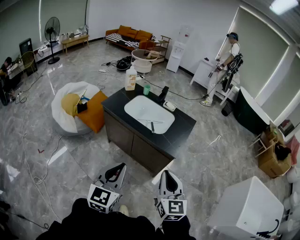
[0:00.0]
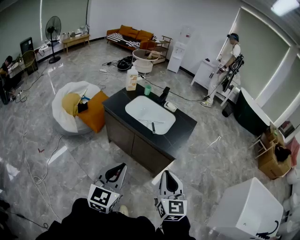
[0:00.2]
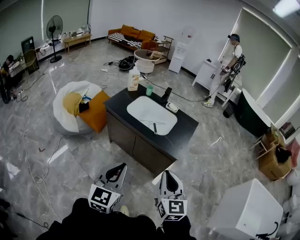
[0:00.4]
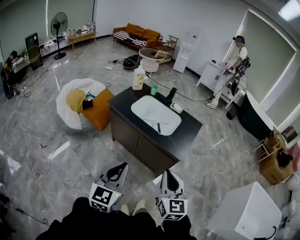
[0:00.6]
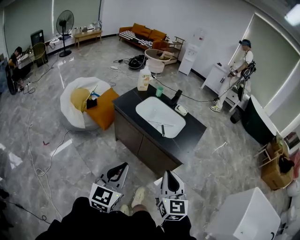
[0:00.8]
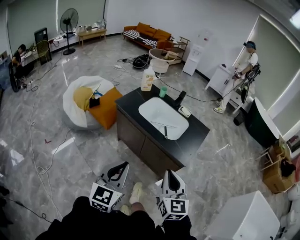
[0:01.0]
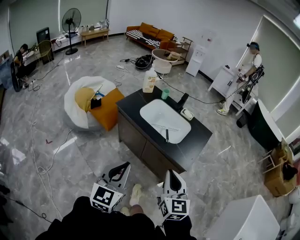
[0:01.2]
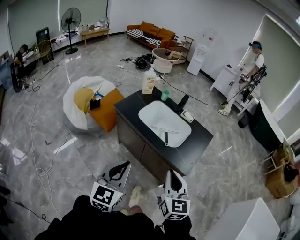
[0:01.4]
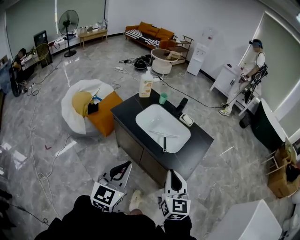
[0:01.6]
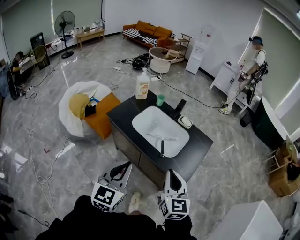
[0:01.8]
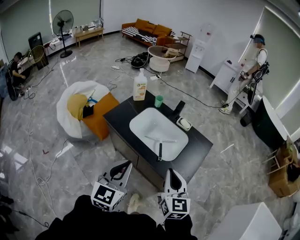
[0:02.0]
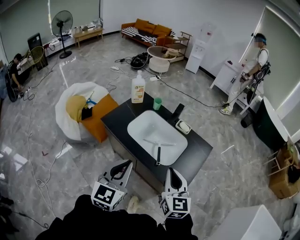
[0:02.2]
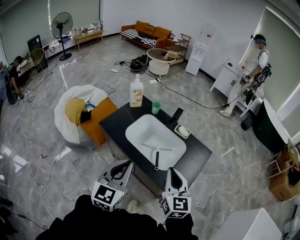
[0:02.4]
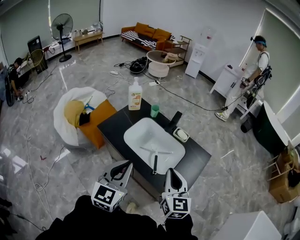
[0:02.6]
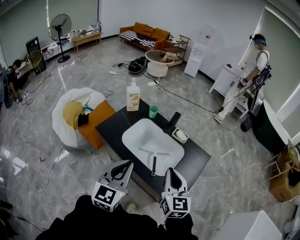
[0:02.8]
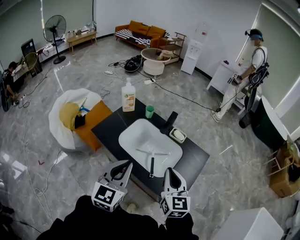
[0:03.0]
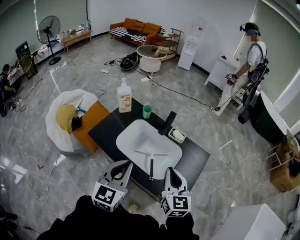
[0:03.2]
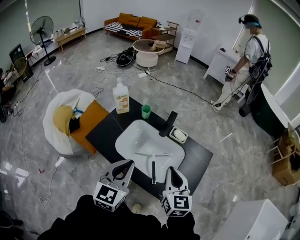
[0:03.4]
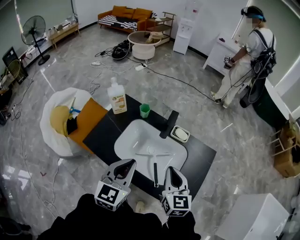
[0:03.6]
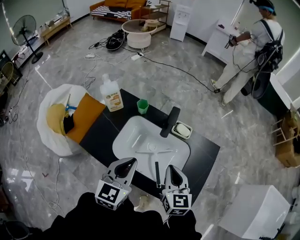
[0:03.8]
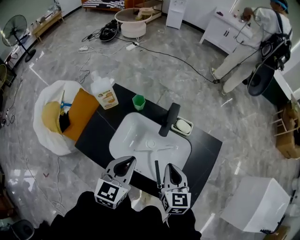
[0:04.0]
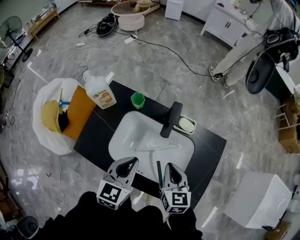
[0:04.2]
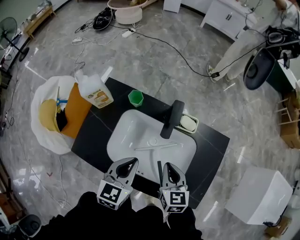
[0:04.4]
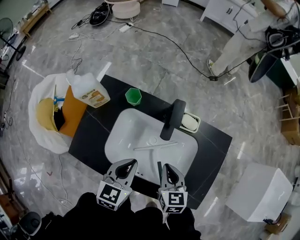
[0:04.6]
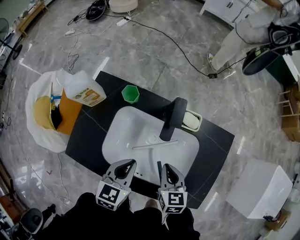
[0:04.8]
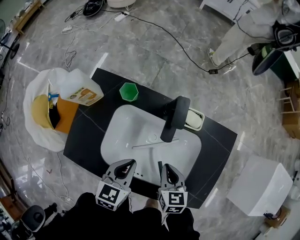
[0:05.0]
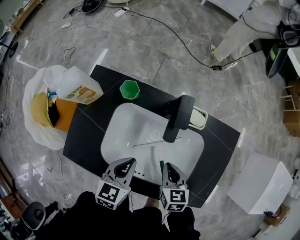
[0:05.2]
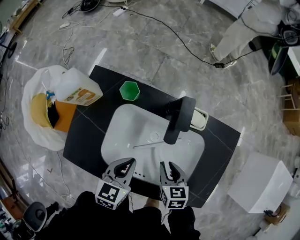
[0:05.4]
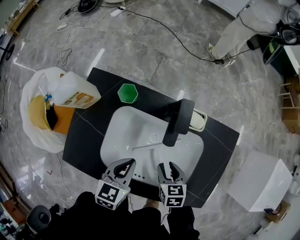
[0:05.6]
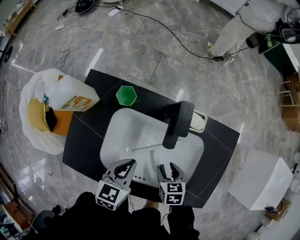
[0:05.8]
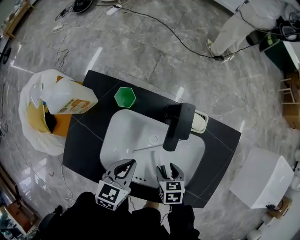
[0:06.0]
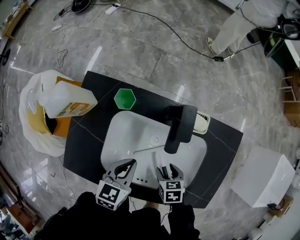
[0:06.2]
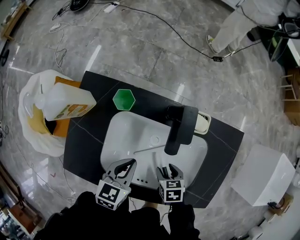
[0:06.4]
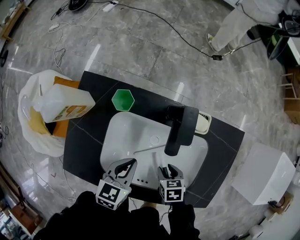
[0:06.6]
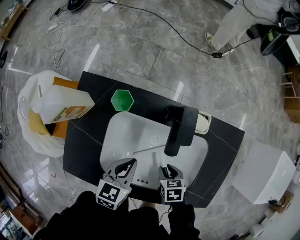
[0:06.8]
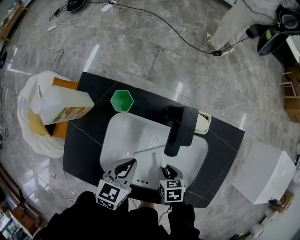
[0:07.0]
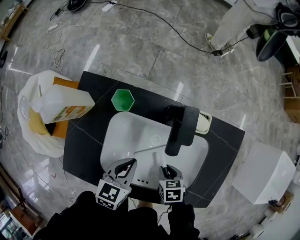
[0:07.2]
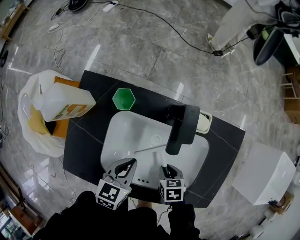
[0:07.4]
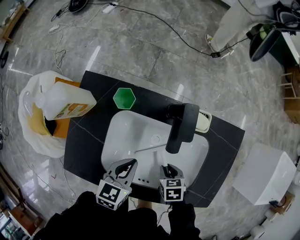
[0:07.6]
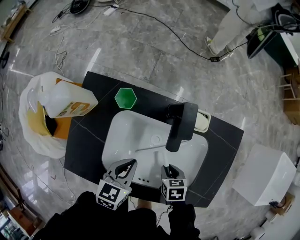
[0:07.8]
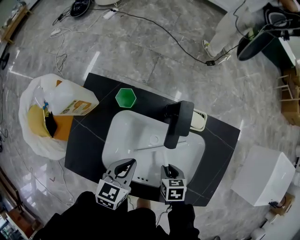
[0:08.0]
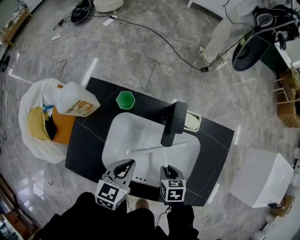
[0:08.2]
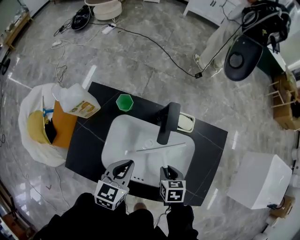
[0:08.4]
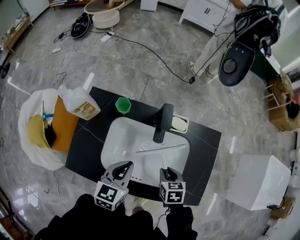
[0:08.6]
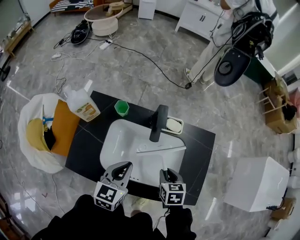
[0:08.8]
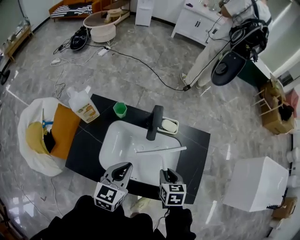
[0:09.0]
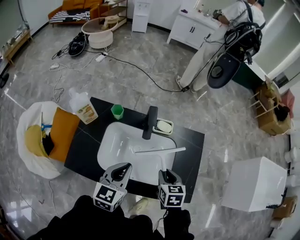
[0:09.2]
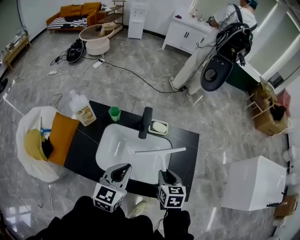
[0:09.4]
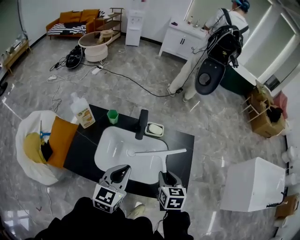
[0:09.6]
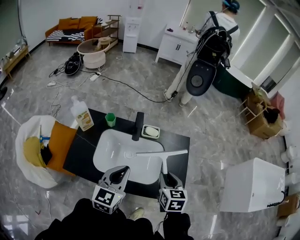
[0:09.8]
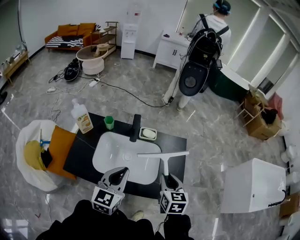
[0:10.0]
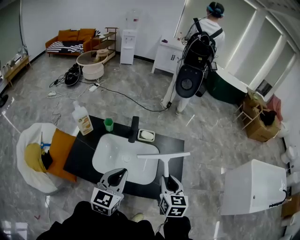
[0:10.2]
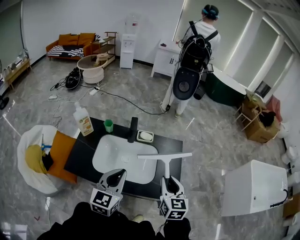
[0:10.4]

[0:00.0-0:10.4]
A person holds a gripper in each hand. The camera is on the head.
0:00.0 to 0:01.4: The two grippers go approximately 15 cm forward.
0:01.4 to 0:03.0: Both grippers travel together forward, about 30 cm.
0:03.0 to 0:04.4: Both grippers move forward and downward, approximately 30 cm. The left gripper swivels about 30 degrees. Meanwhile the right gripper changes its angle by roughly 30 degrees.
0:04.4 to 0:06.0: Both grippers move downward, about 15 cm. The right gripper tips its fingers downward by some 30 degrees, and opens its fingers.
0:06.0 to 0:07.4: The right gripper closes its fingers.
0:07.4 to 0:09.0: The two grippers go roughly 20 cm upward. The right gripper swivels some 20 degrees.
0:09.0 to 0:10.4: The grippers both shift upward, backward and to the right by roughly 25 cm. The right gripper tips its fingers upward by approximately 30 degrees.

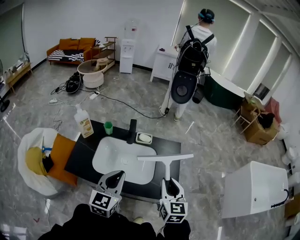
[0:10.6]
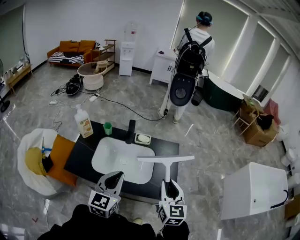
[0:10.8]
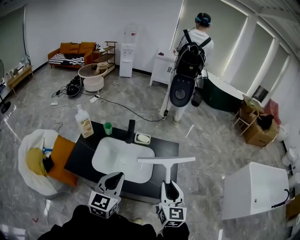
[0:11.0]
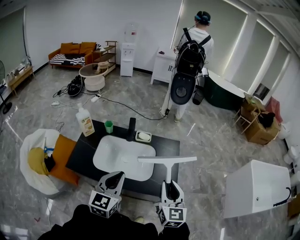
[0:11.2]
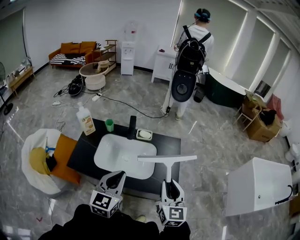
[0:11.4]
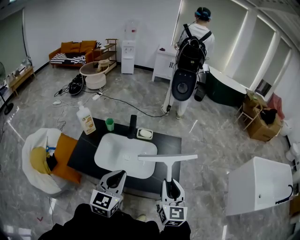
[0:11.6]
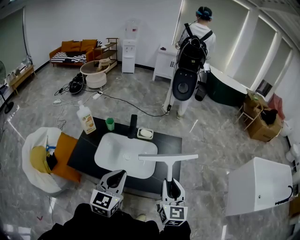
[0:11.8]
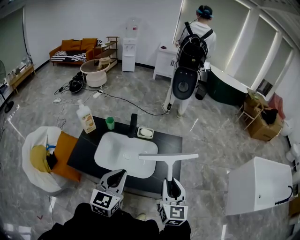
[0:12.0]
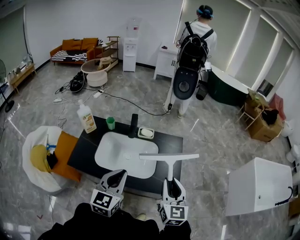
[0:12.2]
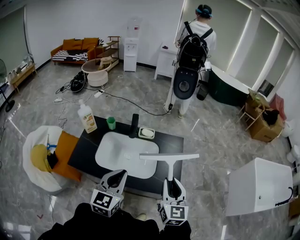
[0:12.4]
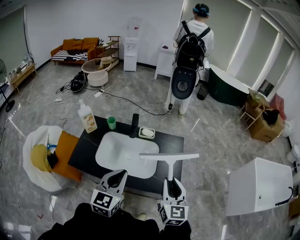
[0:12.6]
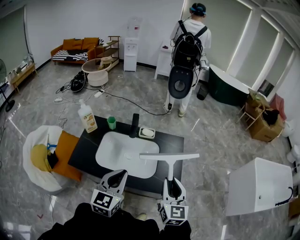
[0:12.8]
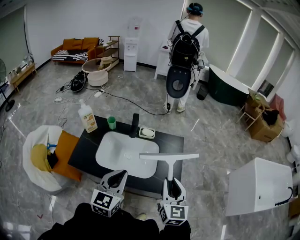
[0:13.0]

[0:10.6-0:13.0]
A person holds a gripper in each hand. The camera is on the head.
0:10.6 to 0:11.8: The right gripper moves some 5 cm.
0:11.8 to 0:13.0: The grippers make only small movements.

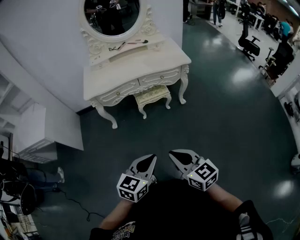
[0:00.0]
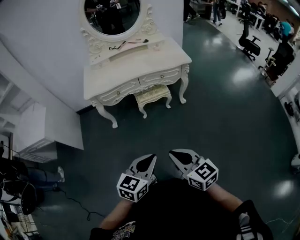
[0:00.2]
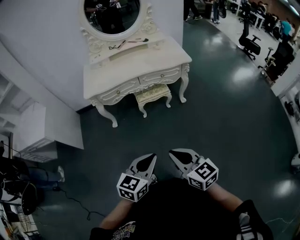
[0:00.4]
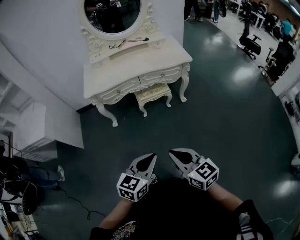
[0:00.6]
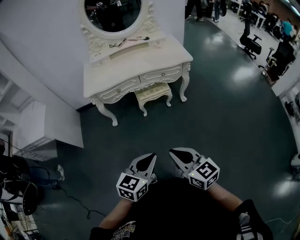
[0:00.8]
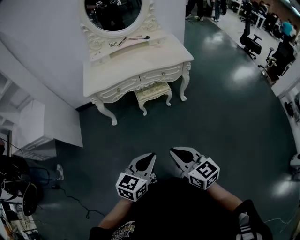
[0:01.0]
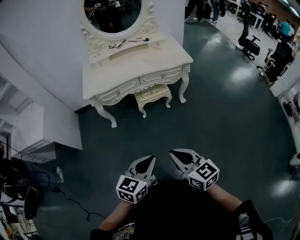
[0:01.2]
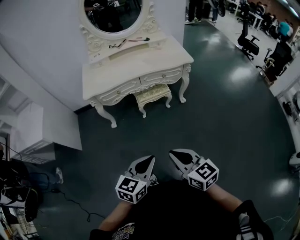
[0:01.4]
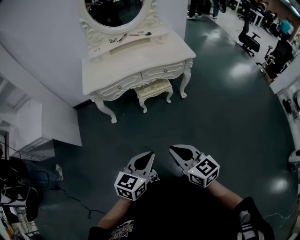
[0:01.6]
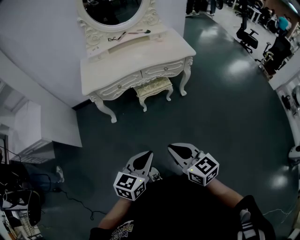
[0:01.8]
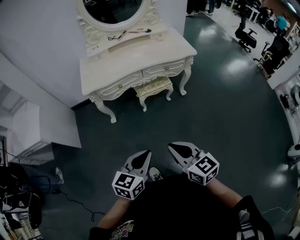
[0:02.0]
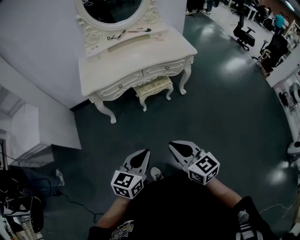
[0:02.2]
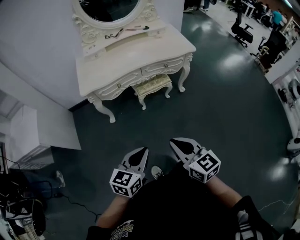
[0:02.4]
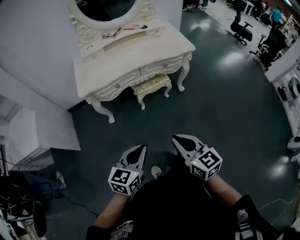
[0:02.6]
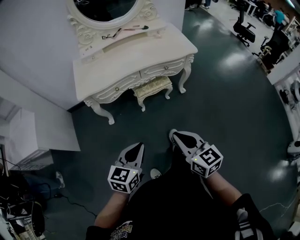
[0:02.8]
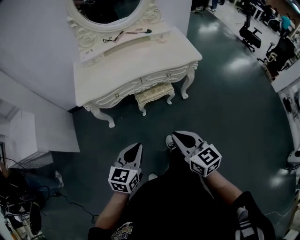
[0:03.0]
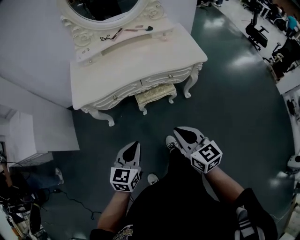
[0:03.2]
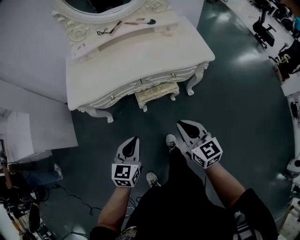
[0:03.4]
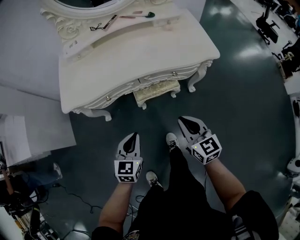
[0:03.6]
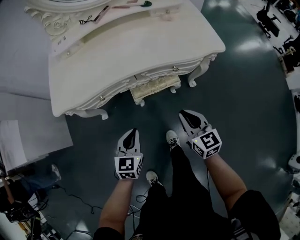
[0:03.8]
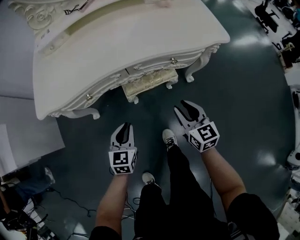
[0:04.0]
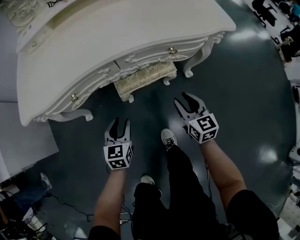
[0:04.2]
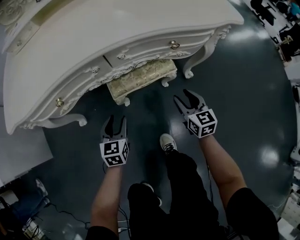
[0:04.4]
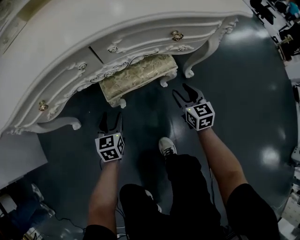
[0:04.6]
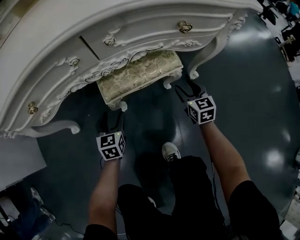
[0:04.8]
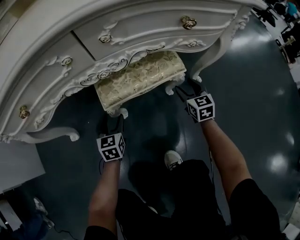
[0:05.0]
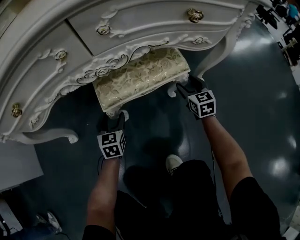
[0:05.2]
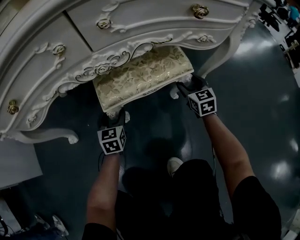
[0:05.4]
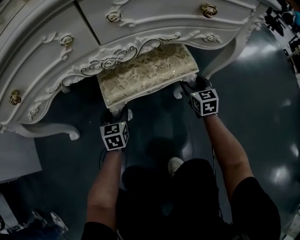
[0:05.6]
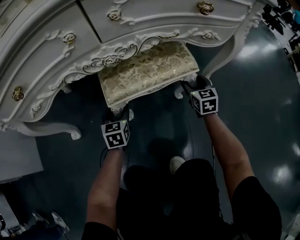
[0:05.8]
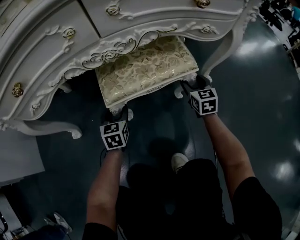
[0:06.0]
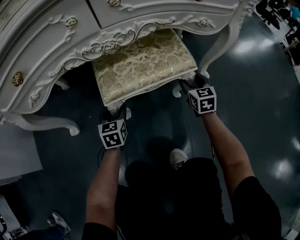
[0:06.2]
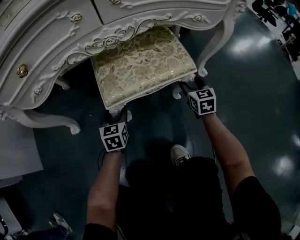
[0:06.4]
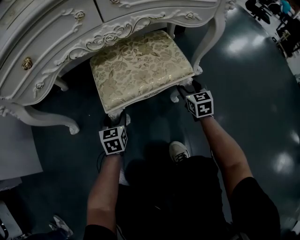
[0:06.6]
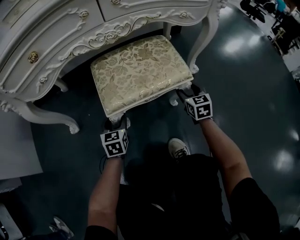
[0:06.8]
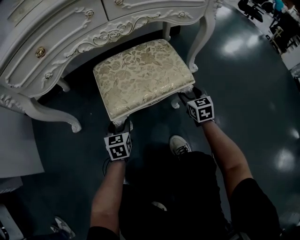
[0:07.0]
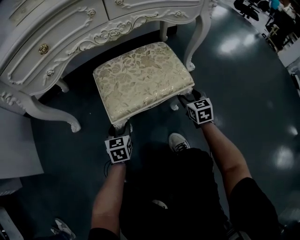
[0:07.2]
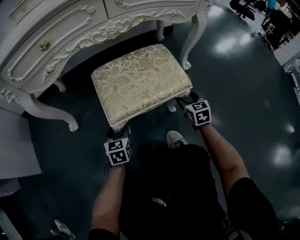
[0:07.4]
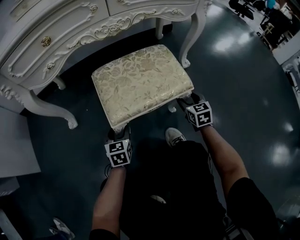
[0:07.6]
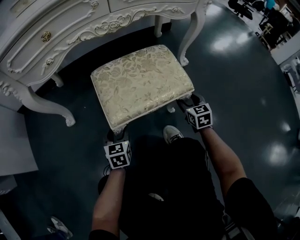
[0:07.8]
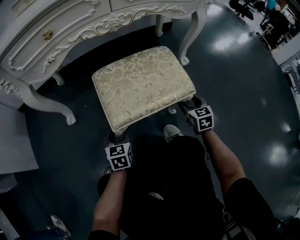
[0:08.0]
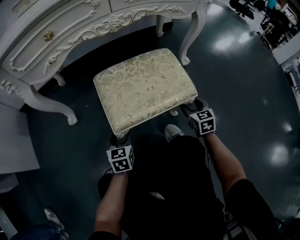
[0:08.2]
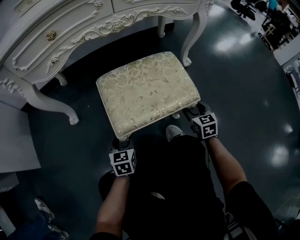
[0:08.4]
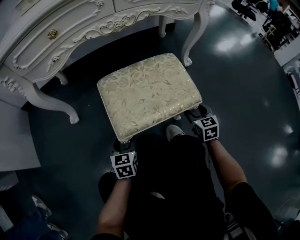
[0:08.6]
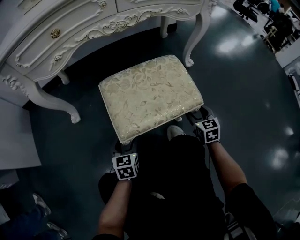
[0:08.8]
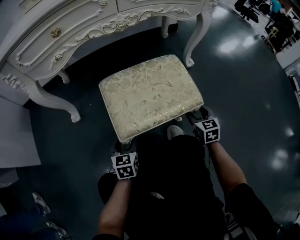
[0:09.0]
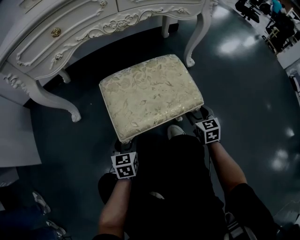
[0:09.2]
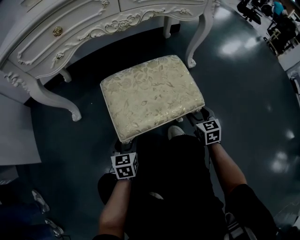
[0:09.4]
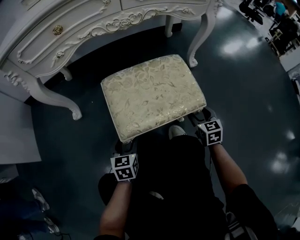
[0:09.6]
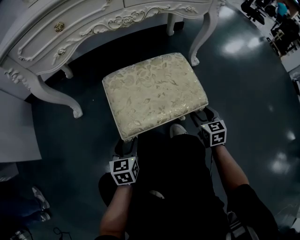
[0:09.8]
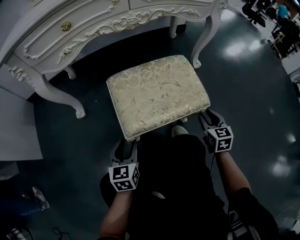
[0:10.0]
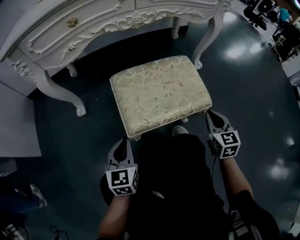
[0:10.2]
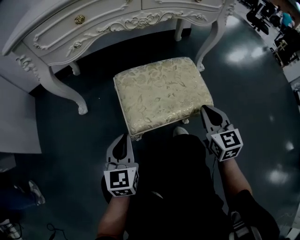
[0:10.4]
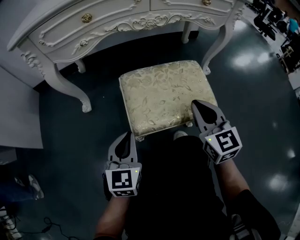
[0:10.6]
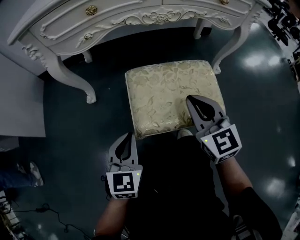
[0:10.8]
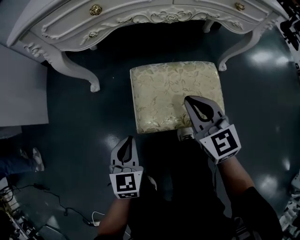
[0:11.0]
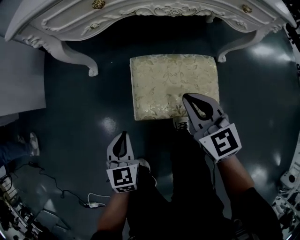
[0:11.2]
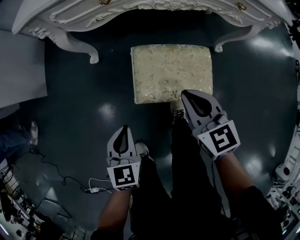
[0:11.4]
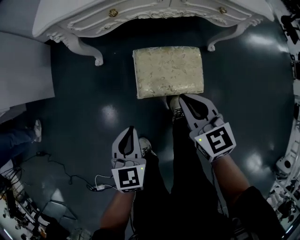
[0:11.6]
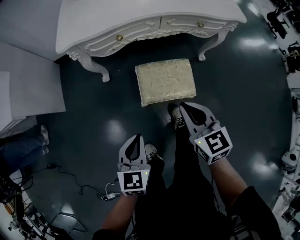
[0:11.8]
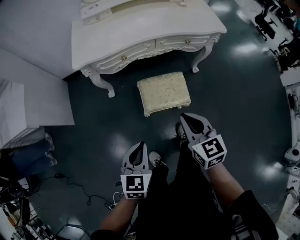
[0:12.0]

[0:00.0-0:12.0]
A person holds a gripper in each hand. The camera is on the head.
0:00.0 to 0:01.6: The right gripper changes place by about 5 cm, while the left gripper travels to the left by about 5 cm.
0:01.6 to 0:03.0: The two grippers go roughly 20 cm forward.
0:03.0 to 0:04.4: Both grippers travel together downward and forward, about 60 cm. The right gripper opens up. The left gripper opens its fingers.
0:04.4 to 0:06.0: Both grippers move downward and forward, approximately 25 cm.
0:07.6 to 0:09.0: The grippers stay close to where they were, moving slightly.
0:09.0 to 0:10.4: The right gripper shifts approximately 15 cm upward and to the left, and closes its fingers. Meanwhile the left gripper travels upward by approximately 15 cm, and closes.
0:10.4 to 0:12.0: The two grippers go some 50 cm upward.
